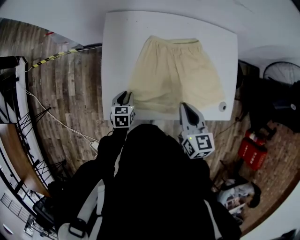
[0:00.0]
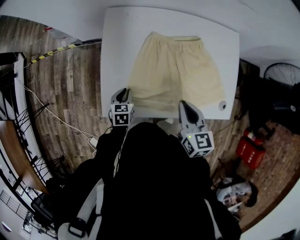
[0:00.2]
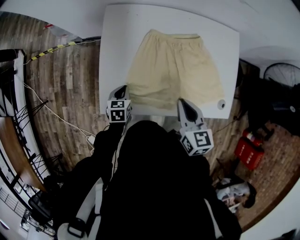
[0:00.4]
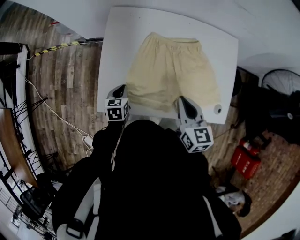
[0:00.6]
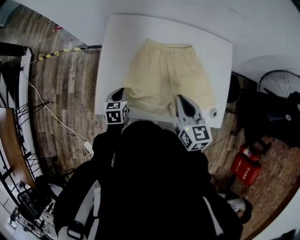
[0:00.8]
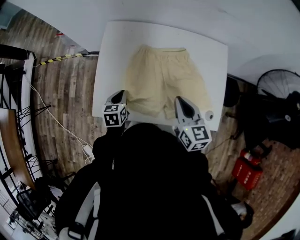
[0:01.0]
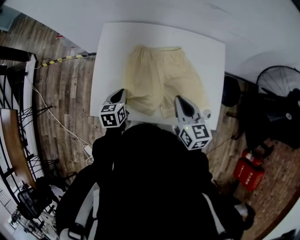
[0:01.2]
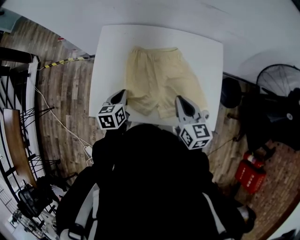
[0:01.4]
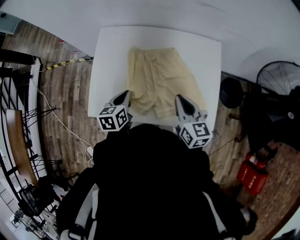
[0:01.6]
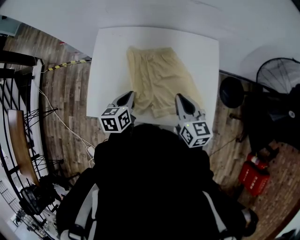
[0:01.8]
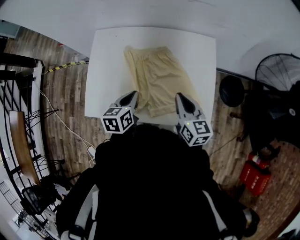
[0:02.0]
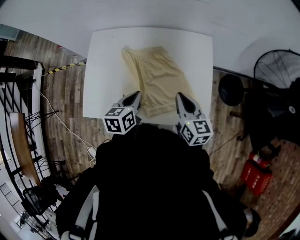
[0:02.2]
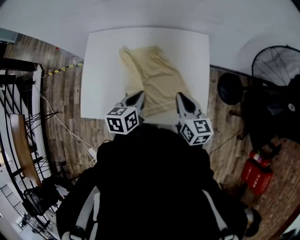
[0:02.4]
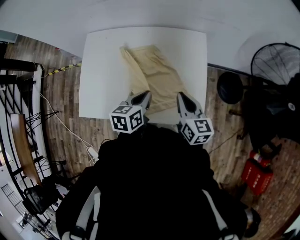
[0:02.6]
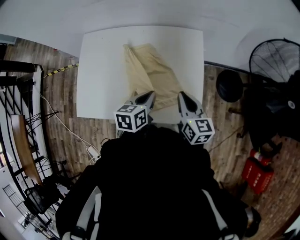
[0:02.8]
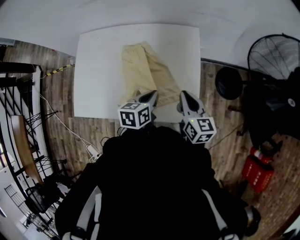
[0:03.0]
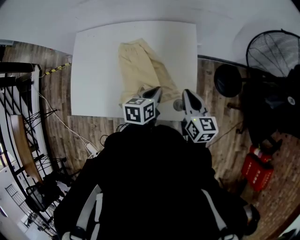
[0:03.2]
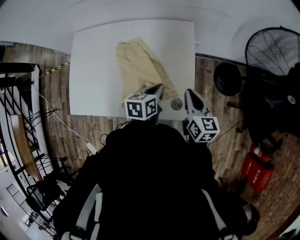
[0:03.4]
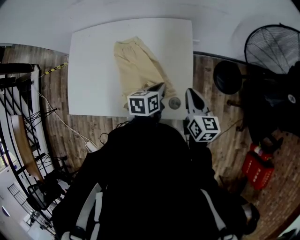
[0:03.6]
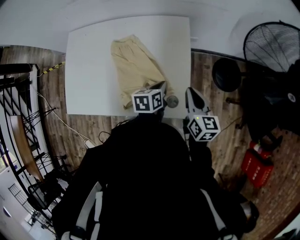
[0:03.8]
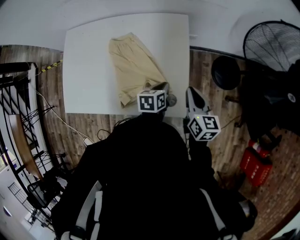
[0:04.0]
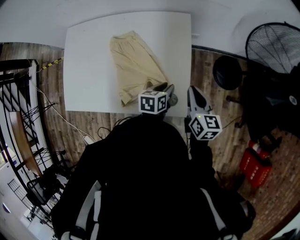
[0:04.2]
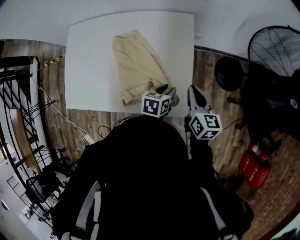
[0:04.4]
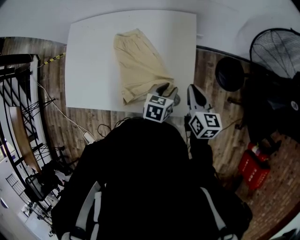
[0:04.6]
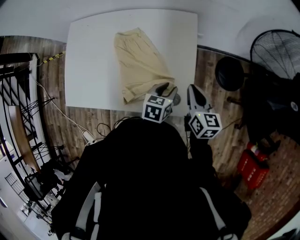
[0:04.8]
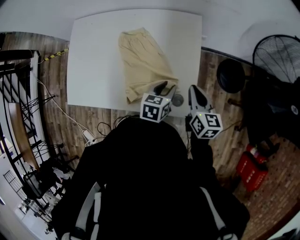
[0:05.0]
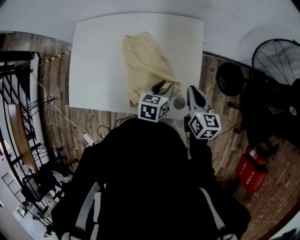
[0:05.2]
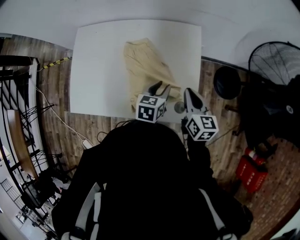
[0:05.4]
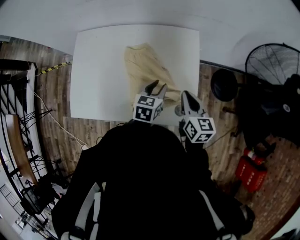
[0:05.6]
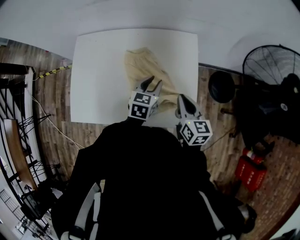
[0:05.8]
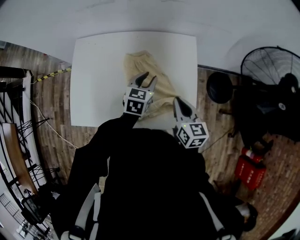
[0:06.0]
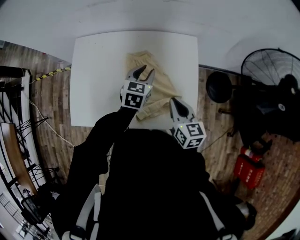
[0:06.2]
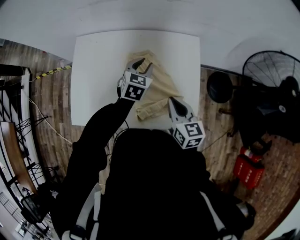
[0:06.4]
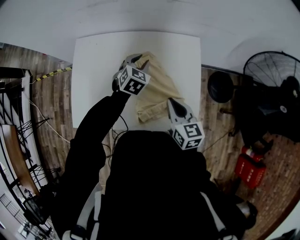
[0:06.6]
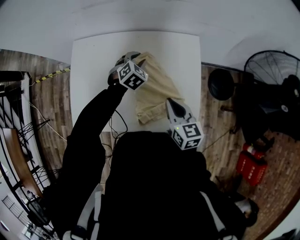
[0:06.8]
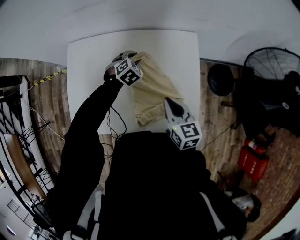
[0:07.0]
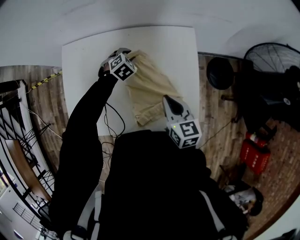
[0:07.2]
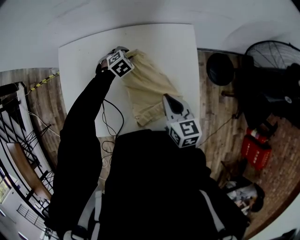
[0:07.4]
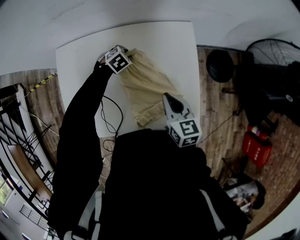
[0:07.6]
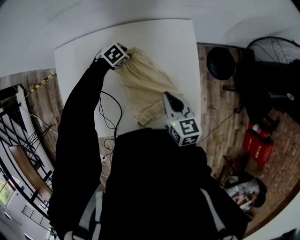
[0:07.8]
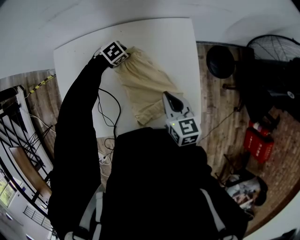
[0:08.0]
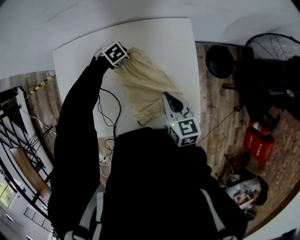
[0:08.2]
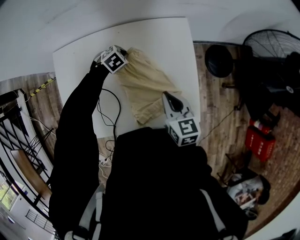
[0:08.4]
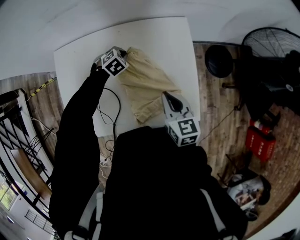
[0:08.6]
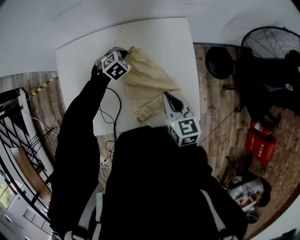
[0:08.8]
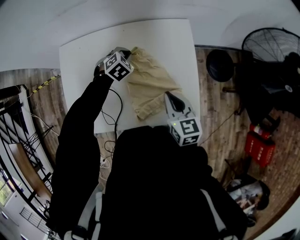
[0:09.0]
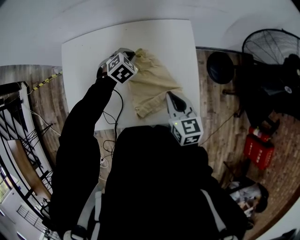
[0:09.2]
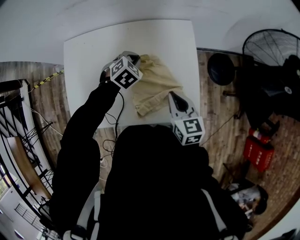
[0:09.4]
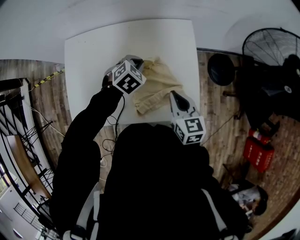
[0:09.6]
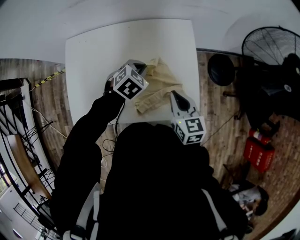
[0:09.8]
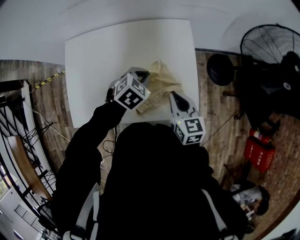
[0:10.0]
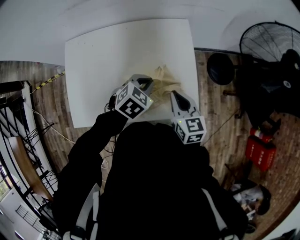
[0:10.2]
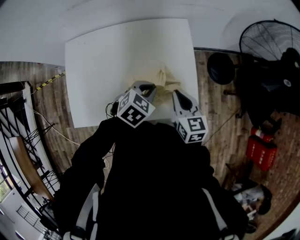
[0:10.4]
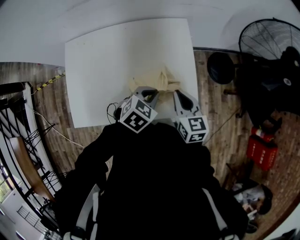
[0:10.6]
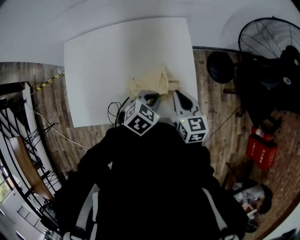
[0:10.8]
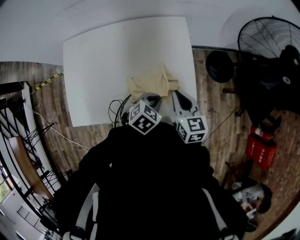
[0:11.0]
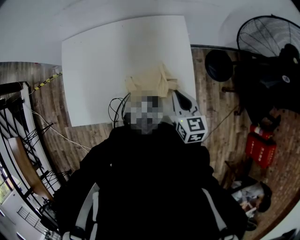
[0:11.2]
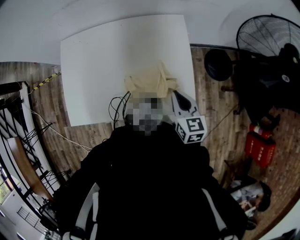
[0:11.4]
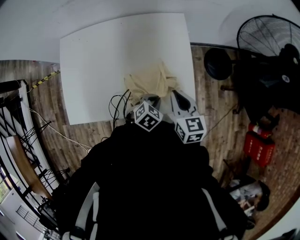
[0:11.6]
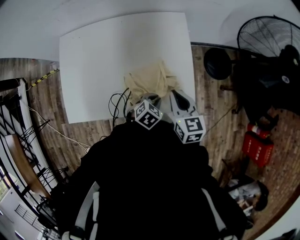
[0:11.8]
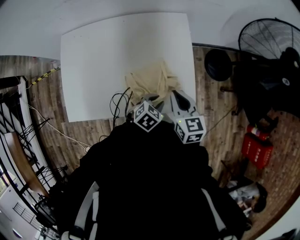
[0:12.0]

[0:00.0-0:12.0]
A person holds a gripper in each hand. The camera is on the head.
0:00.0 to 0:01.6: The left gripper is displaced upward and to the right by roughly 20 cm. Meanwhile the right gripper shifts roughly 15 cm to the right.
0:01.6 to 0:03.0: The right gripper is displaced to the right by approximately 20 cm. The left gripper goes some 30 cm to the right.
0:03.0 to 0:04.4: The left gripper moves to the right and downward, approximately 15 cm, and opens. The right gripper goes about 10 cm to the right.
0:04.4 to 0:06.0: The left gripper moves to the left, upward and forward, roughly 20 cm, and changes its angle by approximately 30 degrees; the right gripper is displaced to the left by roughly 15 cm.
0:06.0 to 0:07.6: The right gripper moves to the left, approximately 5 cm. Meanwhile the left gripper shifts about 25 cm downward, forward and to the left, and tilts its fingers about 40 degrees downward.
0:07.6 to 0:09.0: The left gripper shifts roughly 5 cm upward, and closes.
0:09.0 to 0:10.4: The left gripper shifts approximately 25 cm backward, to the right and upward, and changes its angle by some 20 degrees, while the right gripper shifts roughly 5 cm to the right.
0:10.4 to 0:12.0: The left gripper travels downward, to the right and backward by roughly 15 cm.

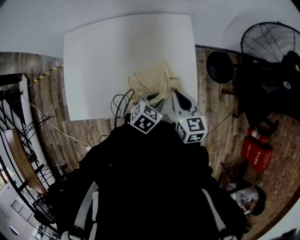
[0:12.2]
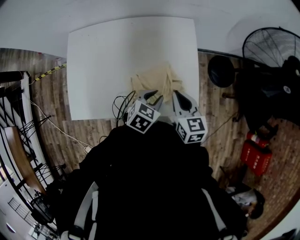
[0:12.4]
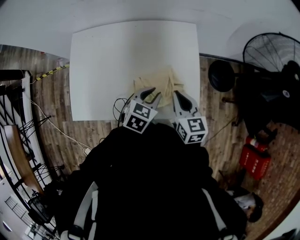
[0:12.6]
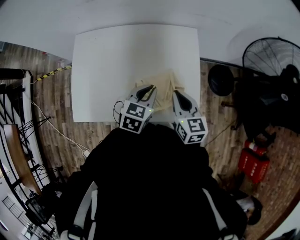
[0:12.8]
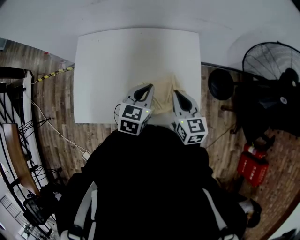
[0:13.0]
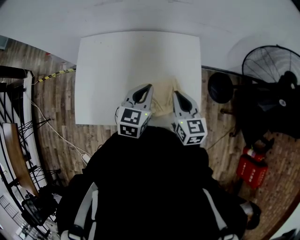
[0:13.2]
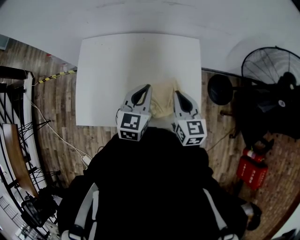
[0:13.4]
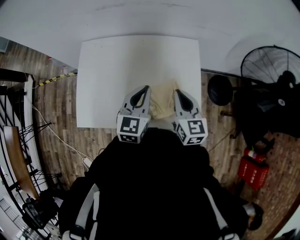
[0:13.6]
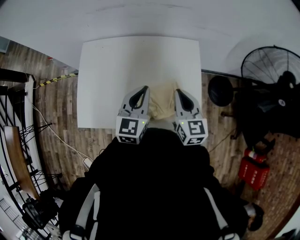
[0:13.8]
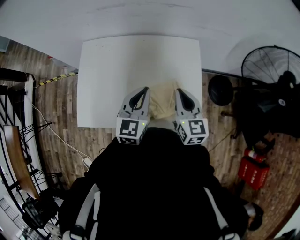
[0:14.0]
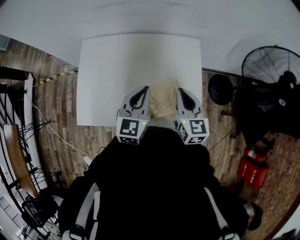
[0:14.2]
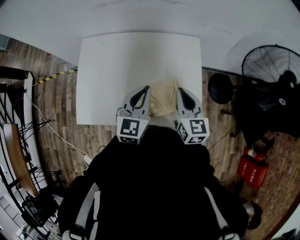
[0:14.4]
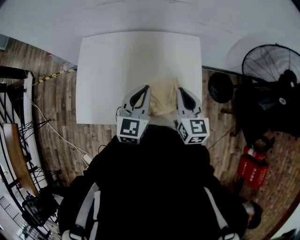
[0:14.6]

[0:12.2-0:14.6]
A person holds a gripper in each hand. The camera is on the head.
0:12.2 to 0:13.4: The right gripper is displaced upward and to the left by some 10 cm, while the left gripper shifts approximately 20 cm upward, to the left and forward, points its fingers about 30 degrees further upward, and closes up.
0:13.4 to 0:14.6: The grippers make only small movements.

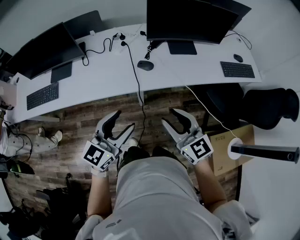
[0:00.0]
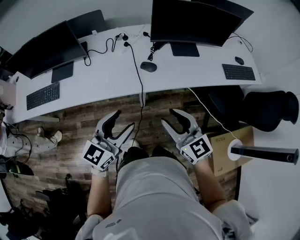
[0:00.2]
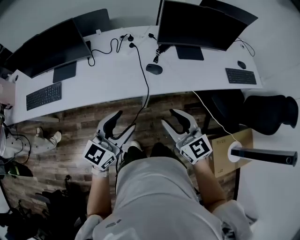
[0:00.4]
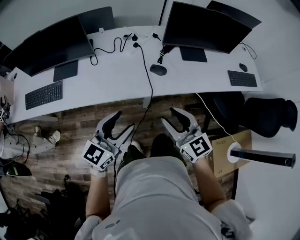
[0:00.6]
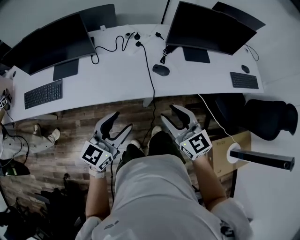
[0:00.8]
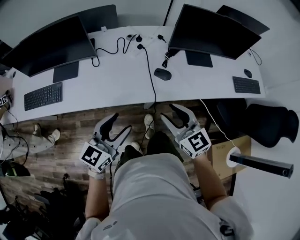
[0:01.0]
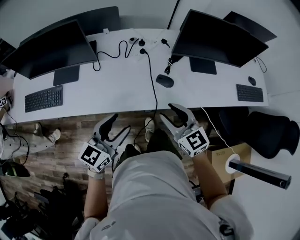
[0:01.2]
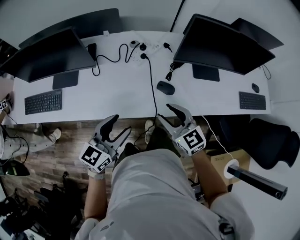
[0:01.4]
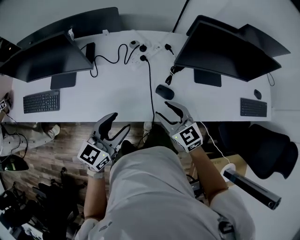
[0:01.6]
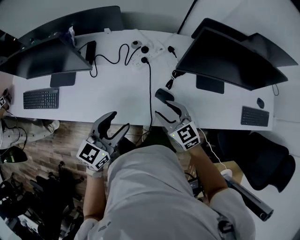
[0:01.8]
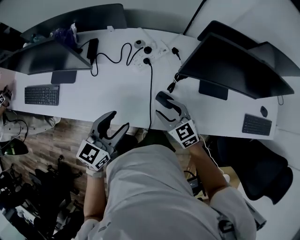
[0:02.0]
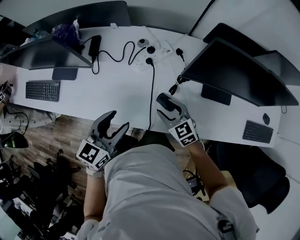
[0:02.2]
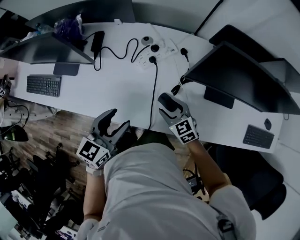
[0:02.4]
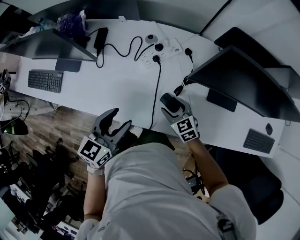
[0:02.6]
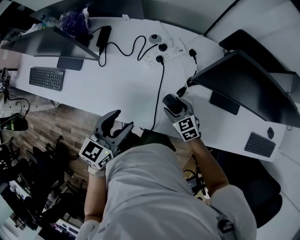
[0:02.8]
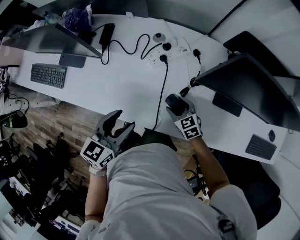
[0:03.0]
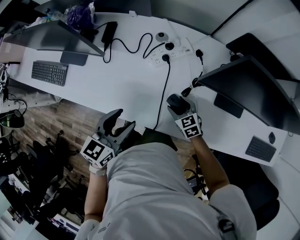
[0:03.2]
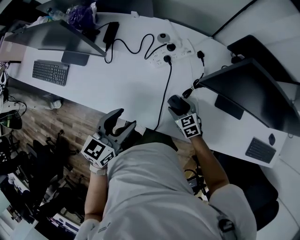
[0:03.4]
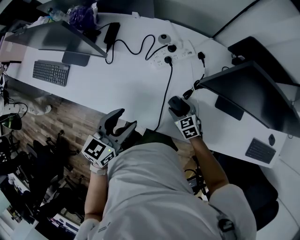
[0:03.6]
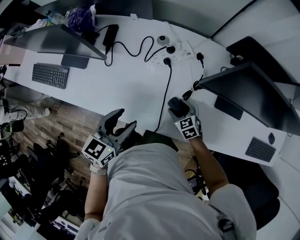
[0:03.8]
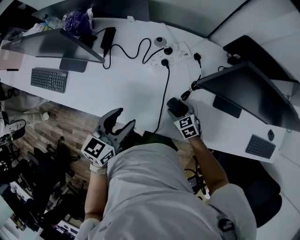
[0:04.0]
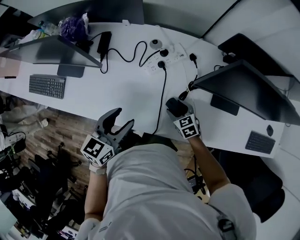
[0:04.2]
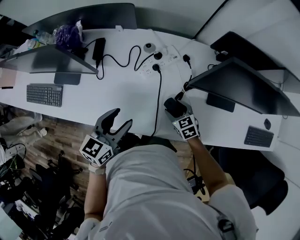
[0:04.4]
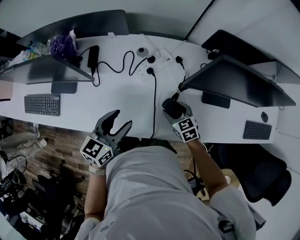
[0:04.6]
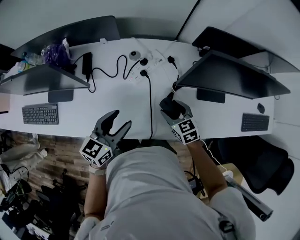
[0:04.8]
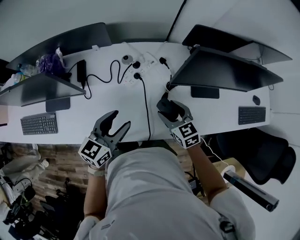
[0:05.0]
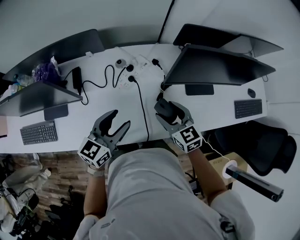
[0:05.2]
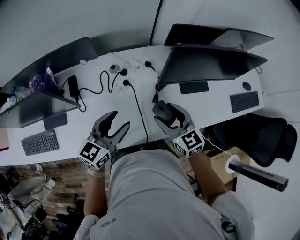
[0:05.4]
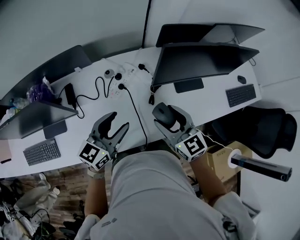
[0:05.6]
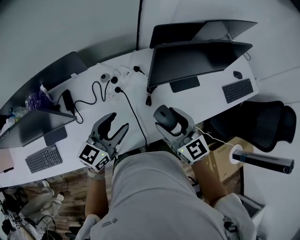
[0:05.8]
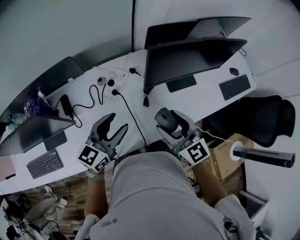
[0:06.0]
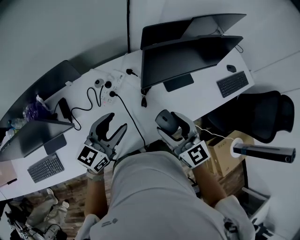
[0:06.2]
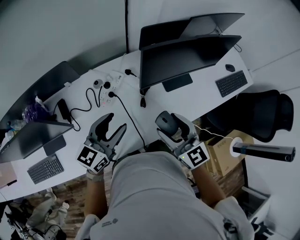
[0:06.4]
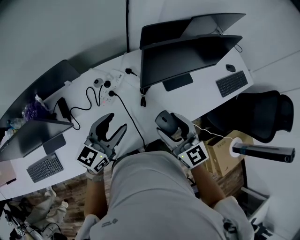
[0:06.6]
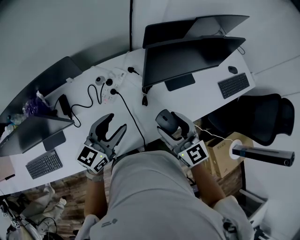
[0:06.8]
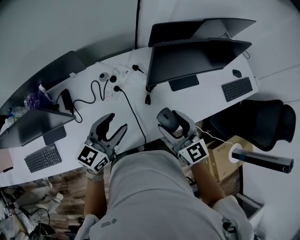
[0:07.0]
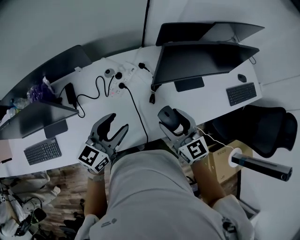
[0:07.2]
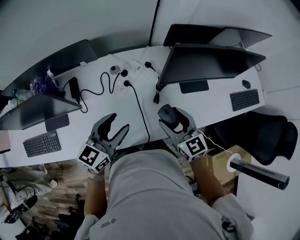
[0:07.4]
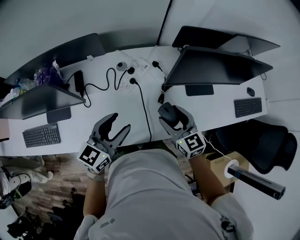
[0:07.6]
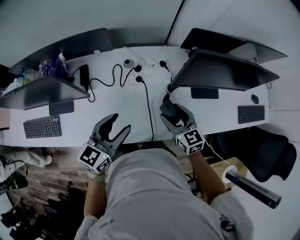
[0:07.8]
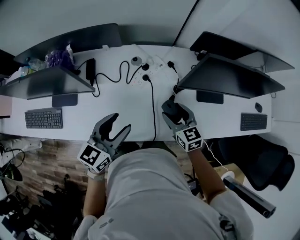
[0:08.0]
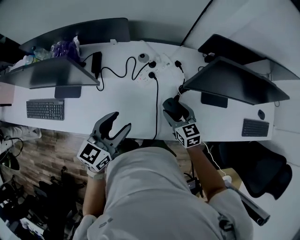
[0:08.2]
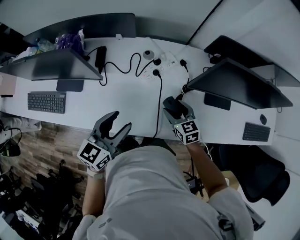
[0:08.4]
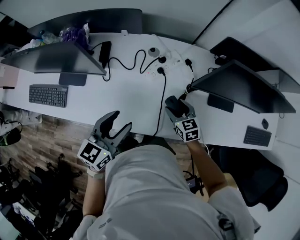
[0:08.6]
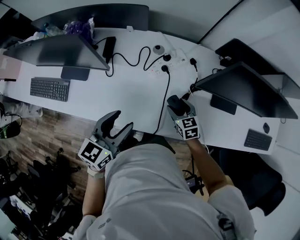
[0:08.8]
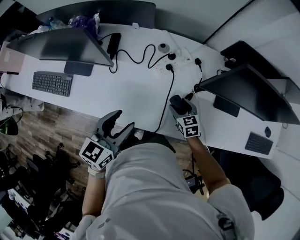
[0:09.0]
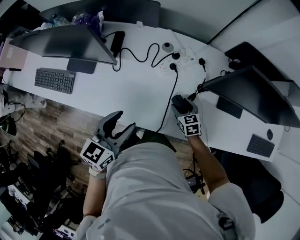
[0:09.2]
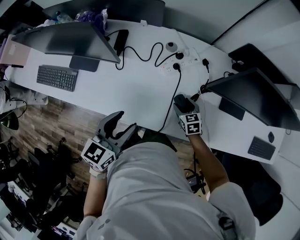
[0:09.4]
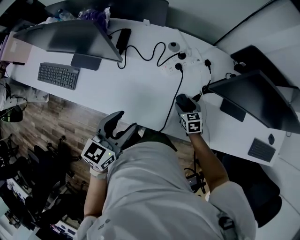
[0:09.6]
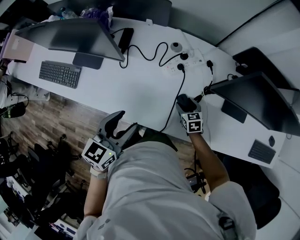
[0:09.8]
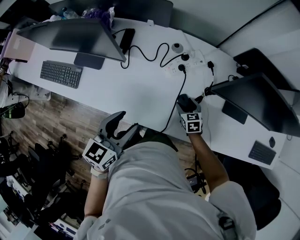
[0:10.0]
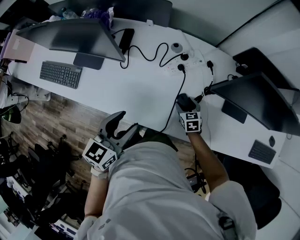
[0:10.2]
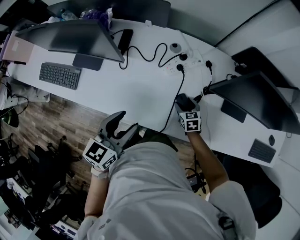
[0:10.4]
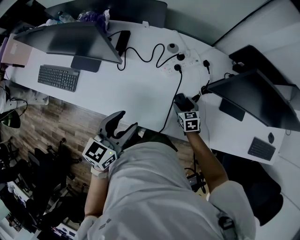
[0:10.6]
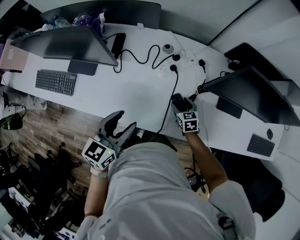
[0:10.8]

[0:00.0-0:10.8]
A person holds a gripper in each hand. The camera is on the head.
0:00.0 to 0:01.6: The right gripper heads forward, covering approximately 25 cm. Meanwhile the left gripper moves forward and to the left, about 25 cm.
0:01.6 to 0:03.0: The right gripper goes about 20 cm downward and forward, and swivels about 20 degrees; the left gripper goes some 10 cm forward and downward, and swivels about 20 degrees.
0:03.0 to 0:04.6: The left gripper ends up about 5 cm from where it was. Meanwhile the right gripper moves about 5 cm.
0:04.6 to 0:06.2: The left gripper is displaced upward by roughly 10 cm, and rotates about 30 degrees, while the right gripper moves upward, roughly 25 cm, and angles its fingers upward, by approximately 30 degrees.
0:06.2 to 0:07.8: The left gripper is displaced to the left by roughly 5 cm. Meanwhile the right gripper travels downward and forward by approximately 10 cm.
0:07.8 to 0:09.2: The right gripper travels downward by some 20 cm, and rotates about 20 degrees; the left gripper moves backward, some 5 cm, and rotates roughly 20 degrees.
0:09.2 to 0:10.8: There are only small adjustments of the grippers.